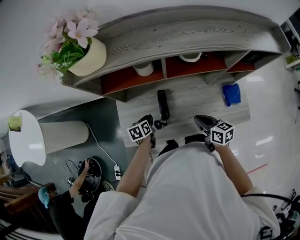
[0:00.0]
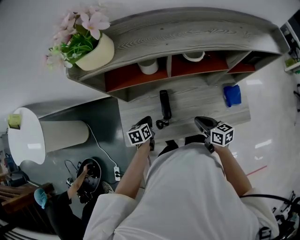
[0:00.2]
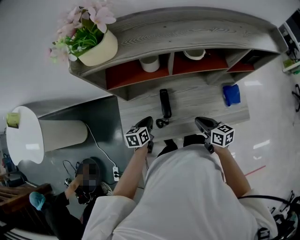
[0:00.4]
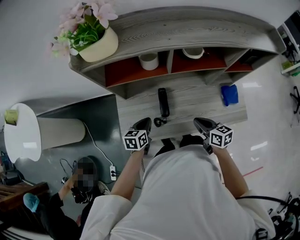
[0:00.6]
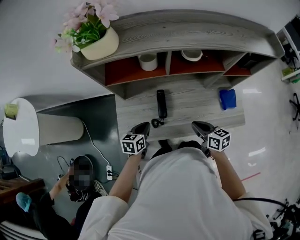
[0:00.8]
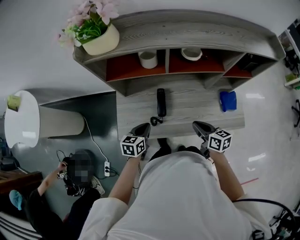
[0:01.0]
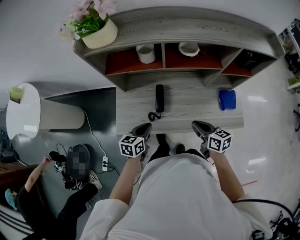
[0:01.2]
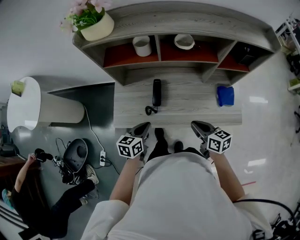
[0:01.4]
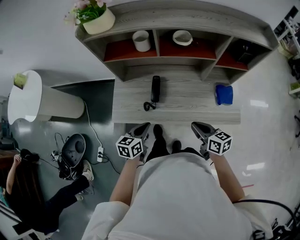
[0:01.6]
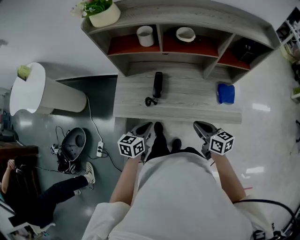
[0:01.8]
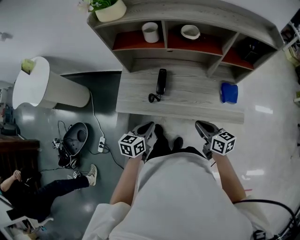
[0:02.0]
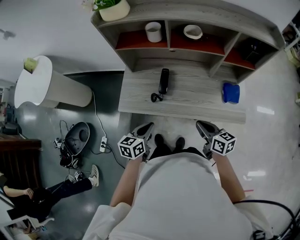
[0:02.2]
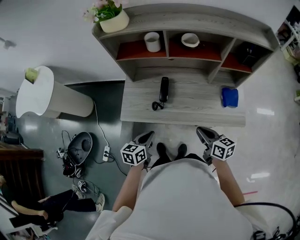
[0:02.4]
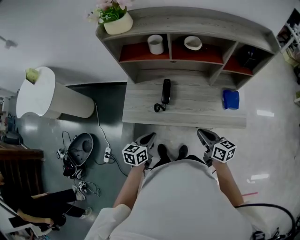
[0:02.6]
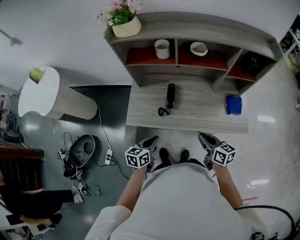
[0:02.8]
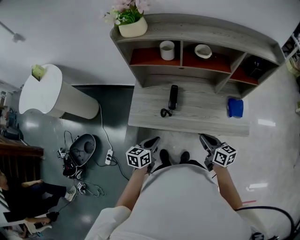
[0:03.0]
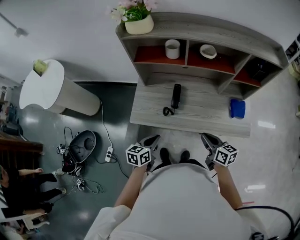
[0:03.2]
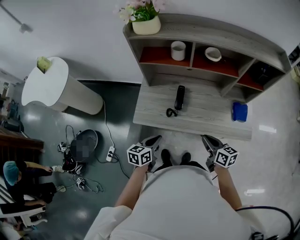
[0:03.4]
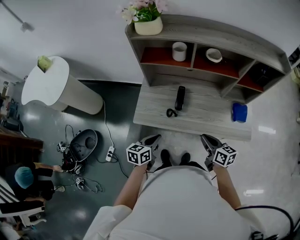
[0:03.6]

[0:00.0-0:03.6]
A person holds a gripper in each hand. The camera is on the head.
0:00.0 to 0:01.8: The right gripper travels backward by approximately 15 cm, while the left gripper is displaced backward and upward by roughly 25 cm, and turns by about 20 degrees.
0:01.8 to 0:03.6: The grippers both shift to the left by some 10 cm.

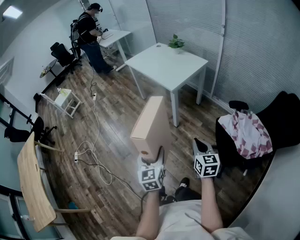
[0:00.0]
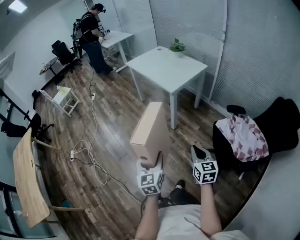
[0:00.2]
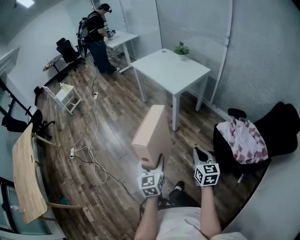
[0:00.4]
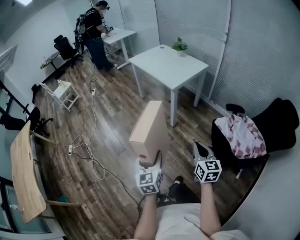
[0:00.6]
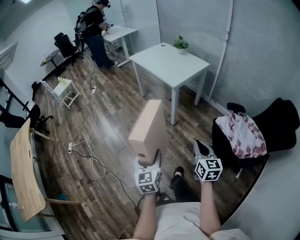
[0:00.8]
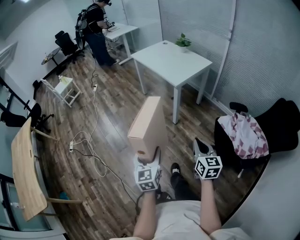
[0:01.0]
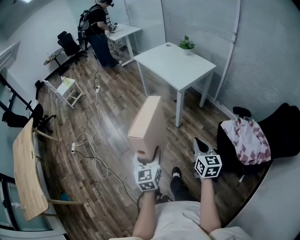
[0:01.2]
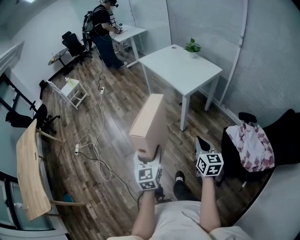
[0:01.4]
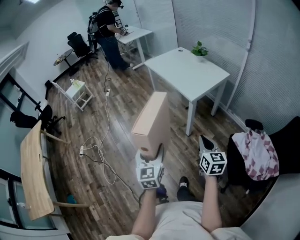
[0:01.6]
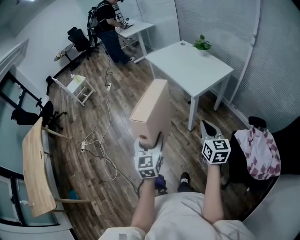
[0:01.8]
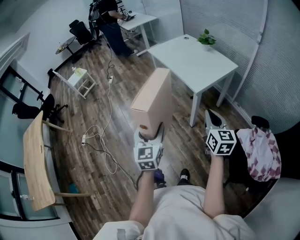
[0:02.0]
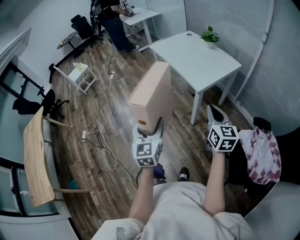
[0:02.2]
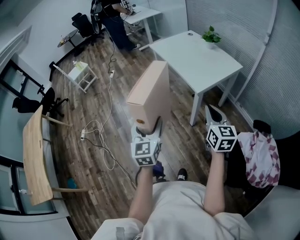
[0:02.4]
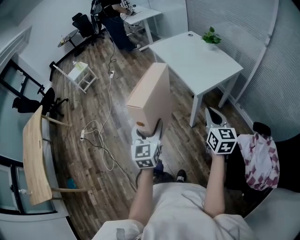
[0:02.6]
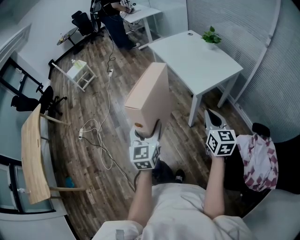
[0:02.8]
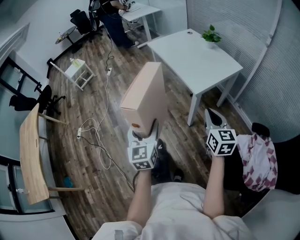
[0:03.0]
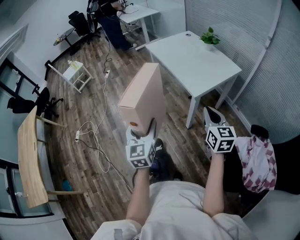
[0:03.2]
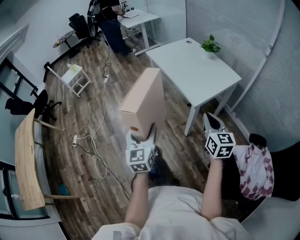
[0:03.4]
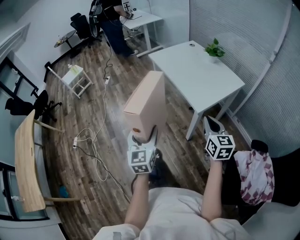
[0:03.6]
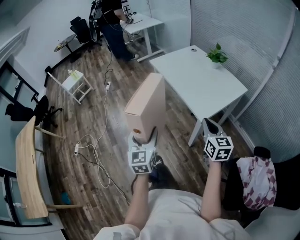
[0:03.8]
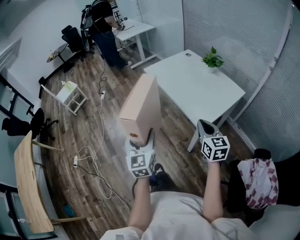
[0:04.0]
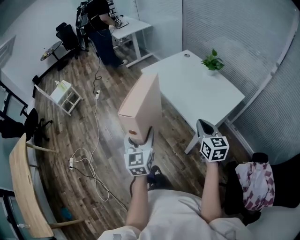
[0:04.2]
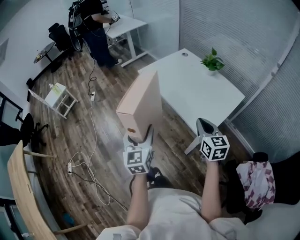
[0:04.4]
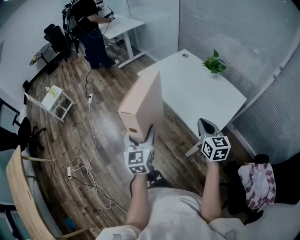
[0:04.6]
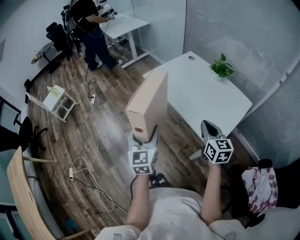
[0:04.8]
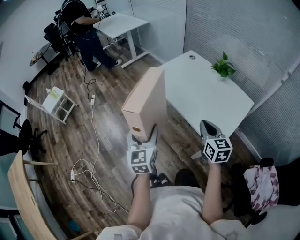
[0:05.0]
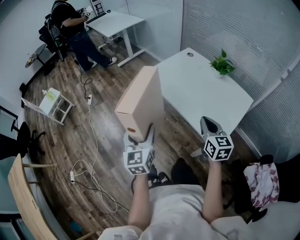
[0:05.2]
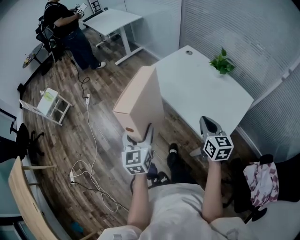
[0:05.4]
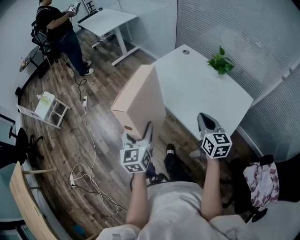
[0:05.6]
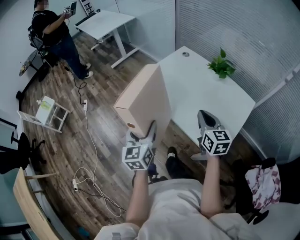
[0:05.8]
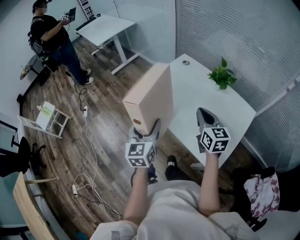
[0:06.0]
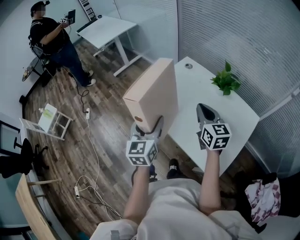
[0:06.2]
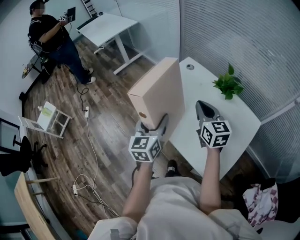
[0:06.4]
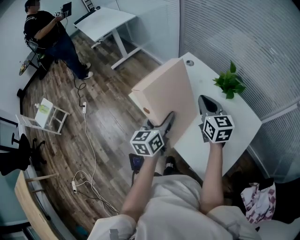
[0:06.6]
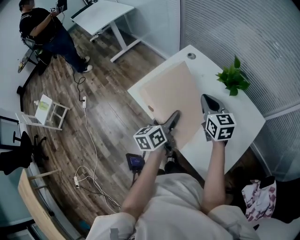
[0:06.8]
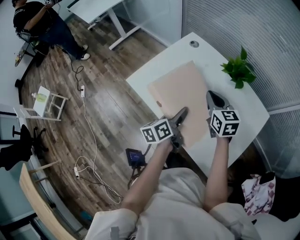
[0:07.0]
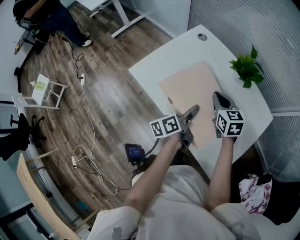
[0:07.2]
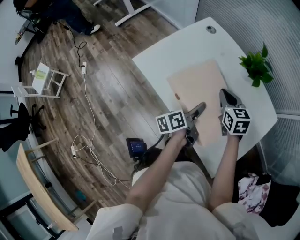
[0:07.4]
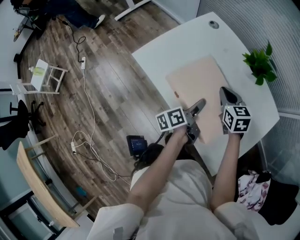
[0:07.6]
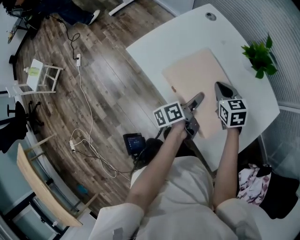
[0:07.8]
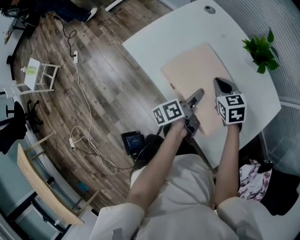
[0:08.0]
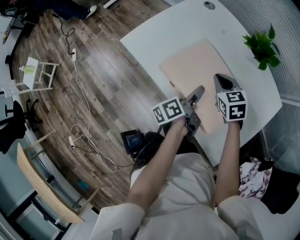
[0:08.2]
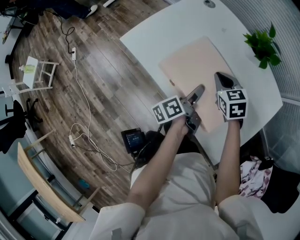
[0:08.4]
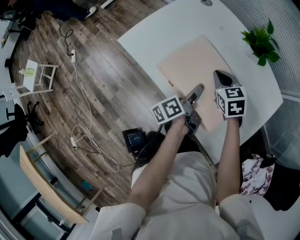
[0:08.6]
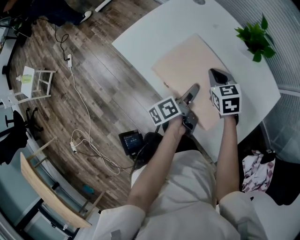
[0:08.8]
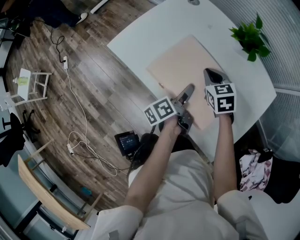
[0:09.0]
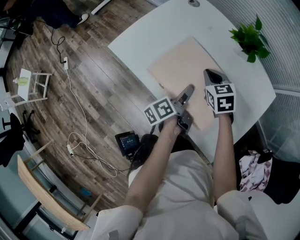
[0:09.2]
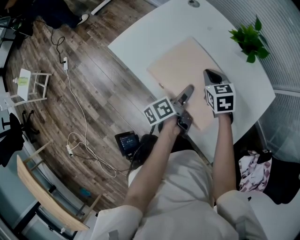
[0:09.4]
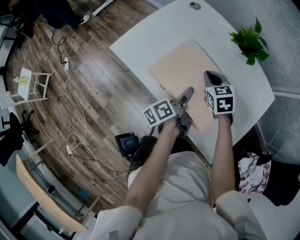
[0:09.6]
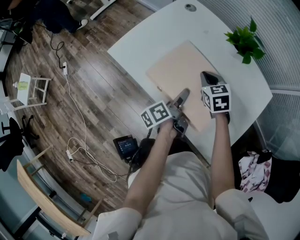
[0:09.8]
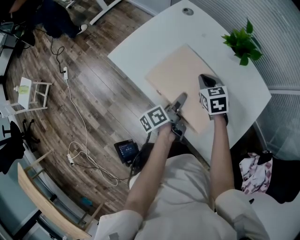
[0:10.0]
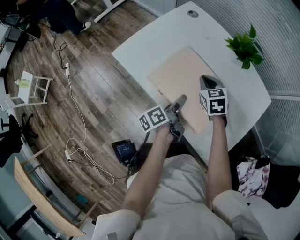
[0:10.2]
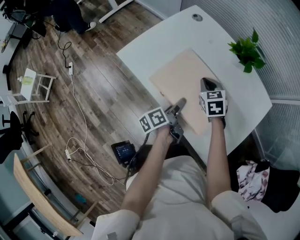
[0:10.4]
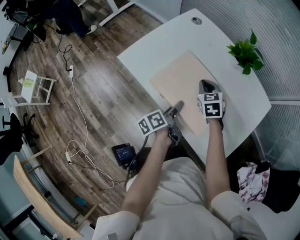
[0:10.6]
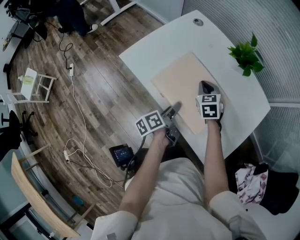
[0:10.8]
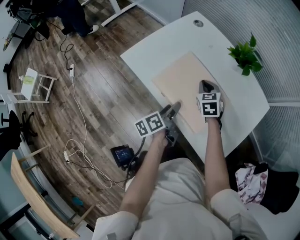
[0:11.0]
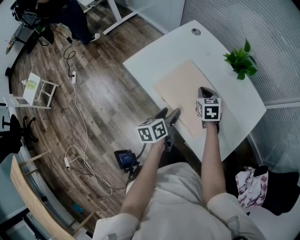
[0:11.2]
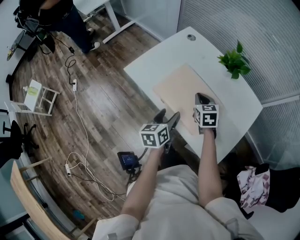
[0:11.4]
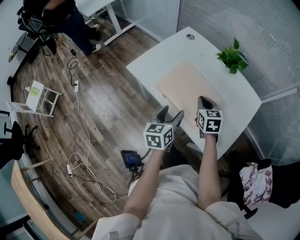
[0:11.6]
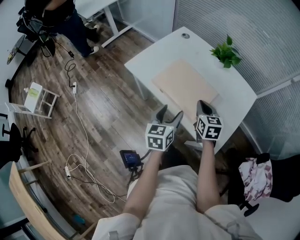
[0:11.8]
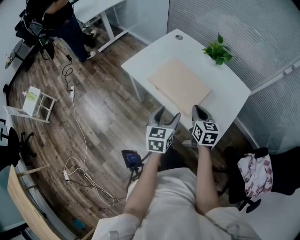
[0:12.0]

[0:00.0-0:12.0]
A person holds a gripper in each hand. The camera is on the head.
0:00.0 to 0:01.6: The right gripper moves forward and to the left, roughly 15 cm. The left gripper goes about 10 cm to the left and forward.
0:01.6 to 0:03.0: Both grippers move forward, about 15 cm.
0:03.0 to 0:04.4: Both grippers move forward, about 35 cm.
0:04.4 to 0:06.0: The grippers both shift forward by some 30 cm.
0:06.0 to 0:07.6: The left gripper goes some 30 cm downward, to the right and forward, and rolls counterclockwise, seen from behind, by approximately 70 degrees; the right gripper goes roughly 25 cm downward and forward, and swivels roughly 30 degrees.
0:07.6 to 0:10.4: The grippers stay close to where they were, moving slightly.
0:10.4 to 0:12.0: Both grippers travel together backward and upward, approximately 25 cm. The left gripper rolls clockwise, seen from behind, by approximately 70 degrees, while the right gripper turns by some 30 degrees.

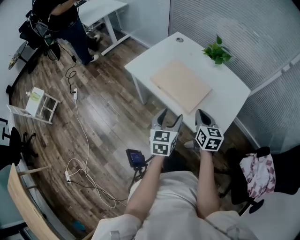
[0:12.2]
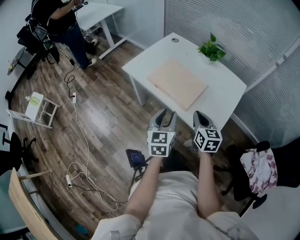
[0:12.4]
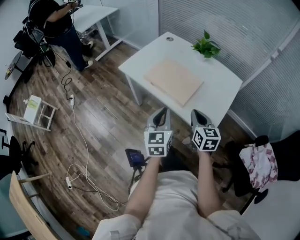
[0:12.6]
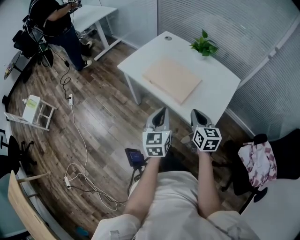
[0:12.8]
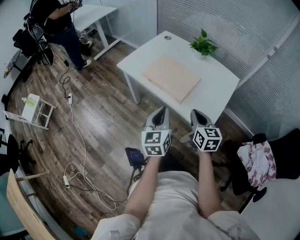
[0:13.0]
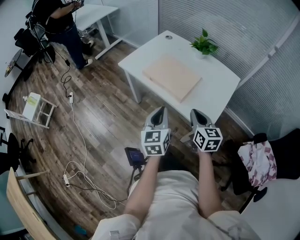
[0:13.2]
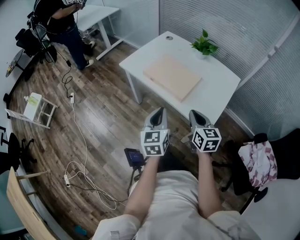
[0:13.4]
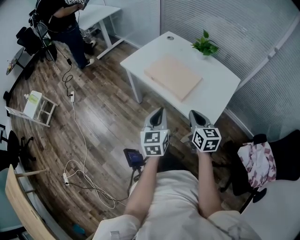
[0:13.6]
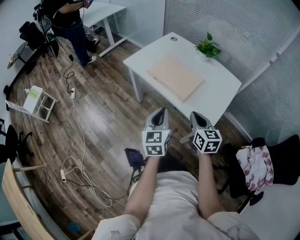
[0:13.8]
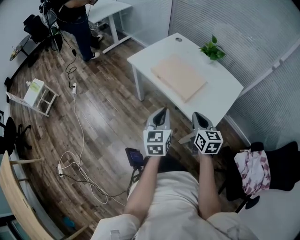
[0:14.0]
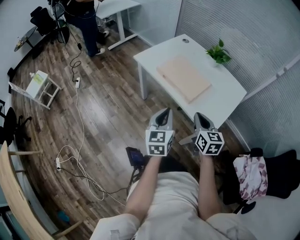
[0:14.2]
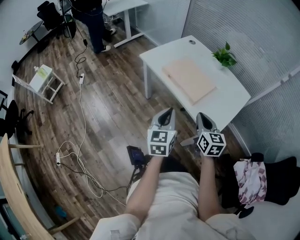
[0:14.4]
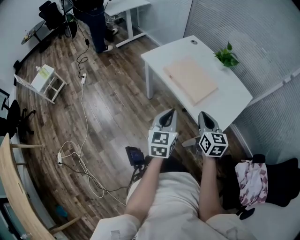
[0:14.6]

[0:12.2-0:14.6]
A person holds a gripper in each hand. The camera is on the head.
0:12.2 to 0:13.4: The grippers both shift backward by about 10 cm. The left gripper closes up.
0:13.4 to 0:14.6: The grippers stay close to where they were, moving slightly.

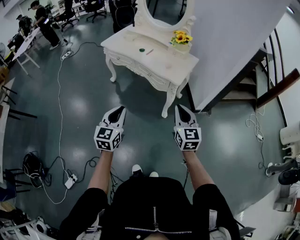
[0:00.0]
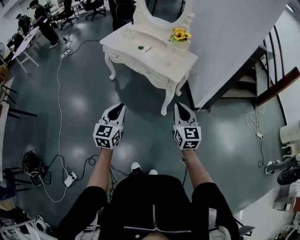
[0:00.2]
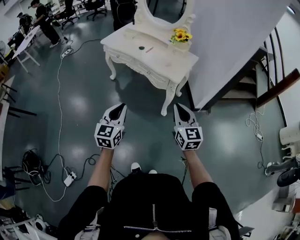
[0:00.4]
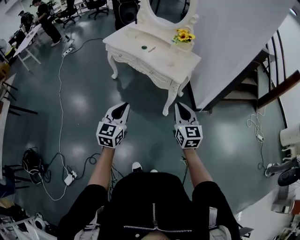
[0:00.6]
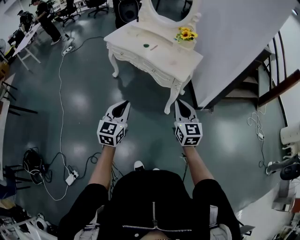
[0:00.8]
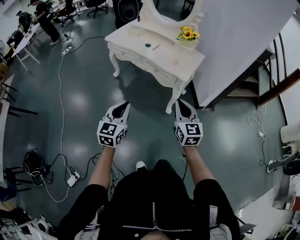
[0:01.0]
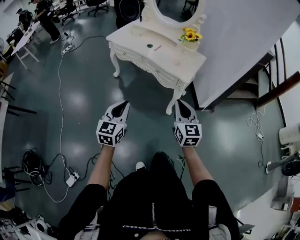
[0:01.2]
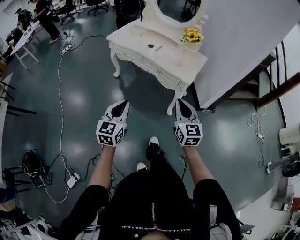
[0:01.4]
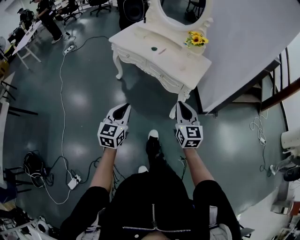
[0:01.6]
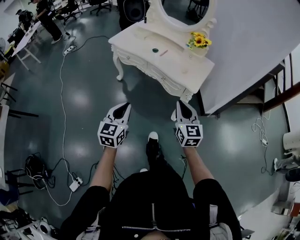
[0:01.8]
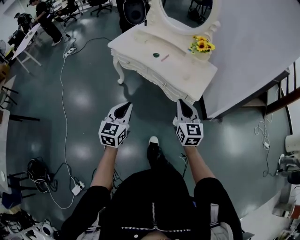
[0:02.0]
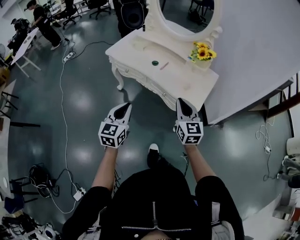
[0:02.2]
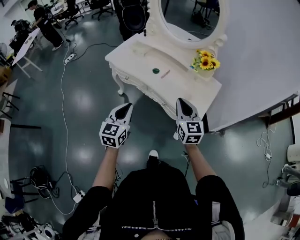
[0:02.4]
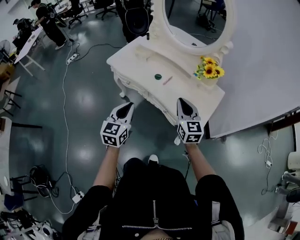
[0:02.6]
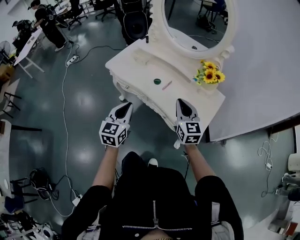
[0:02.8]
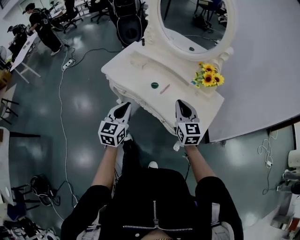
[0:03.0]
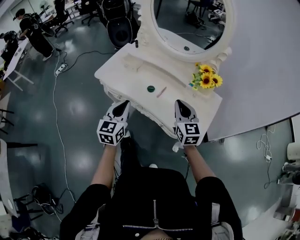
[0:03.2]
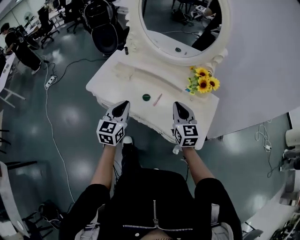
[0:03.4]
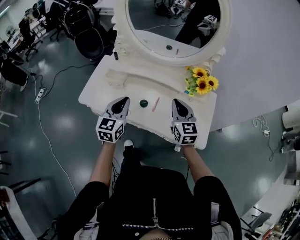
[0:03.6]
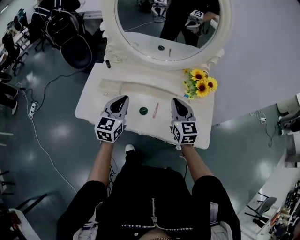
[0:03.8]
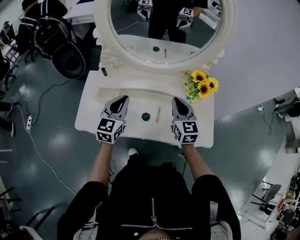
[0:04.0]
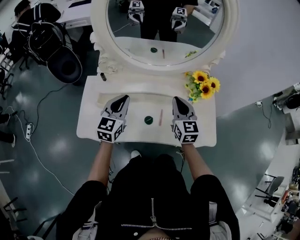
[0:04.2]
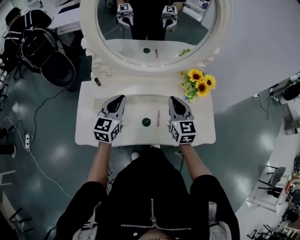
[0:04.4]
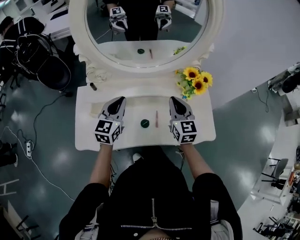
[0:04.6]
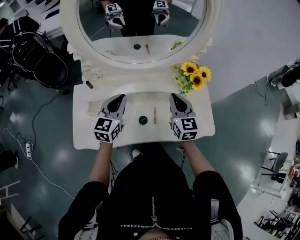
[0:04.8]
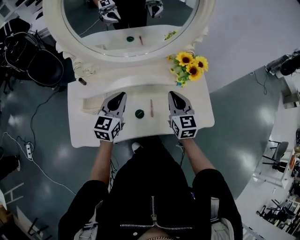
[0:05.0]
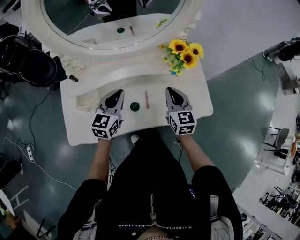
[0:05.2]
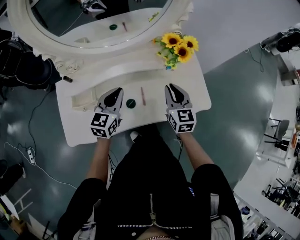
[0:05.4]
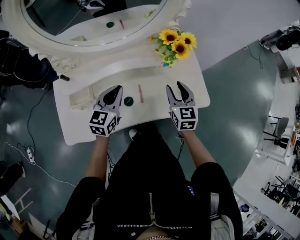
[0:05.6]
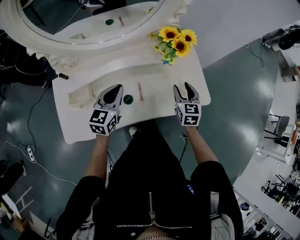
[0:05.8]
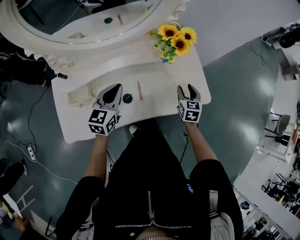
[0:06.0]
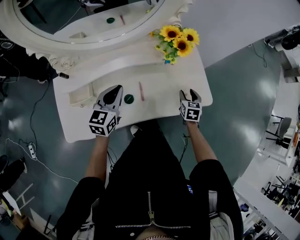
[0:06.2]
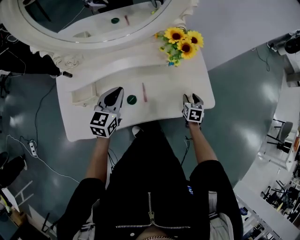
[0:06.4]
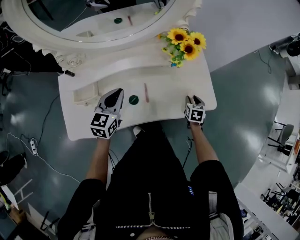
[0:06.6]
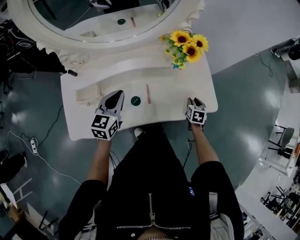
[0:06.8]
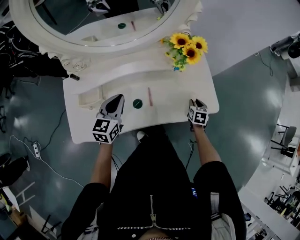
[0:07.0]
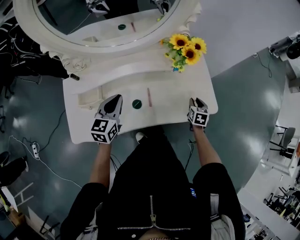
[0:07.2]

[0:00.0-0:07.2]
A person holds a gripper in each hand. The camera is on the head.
0:00.0 to 0:01.4: Both grippers travel together to the left, about 10 cm.
0:01.4 to 0:02.8: Both grippers move forward, some 40 cm.
0:02.8 to 0:04.4: The left gripper ends up some 50 cm from where it was, and swivels roughly 40 degrees, while the right gripper changes place by roughly 30 cm, and changes its angle by about 40 degrees.
0:04.4 to 0:05.8: The left gripper shifts about 15 cm to the right and downward, while the right gripper travels to the right and downward by about 25 cm, swivels about 30 degrees, and opens.
0:05.8 to 0:07.2: The right gripper shifts some 15 cm downward and to the right, and rotates roughly 20 degrees; the left gripper shifts by some 5 cm.
